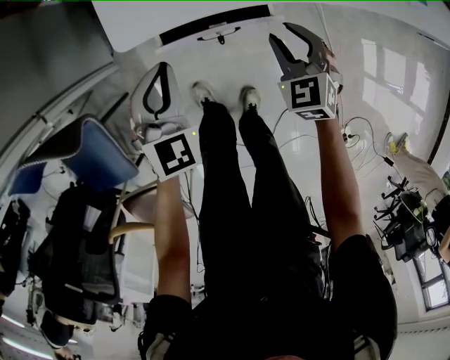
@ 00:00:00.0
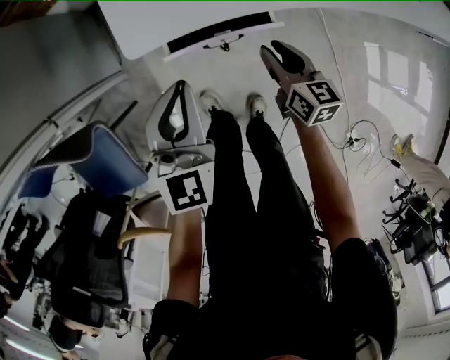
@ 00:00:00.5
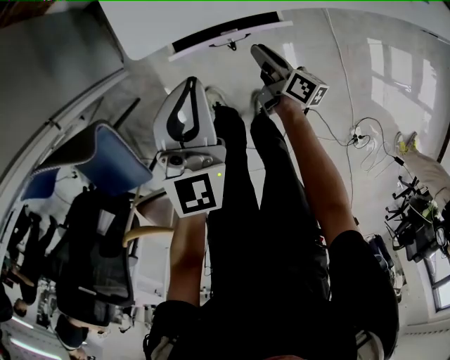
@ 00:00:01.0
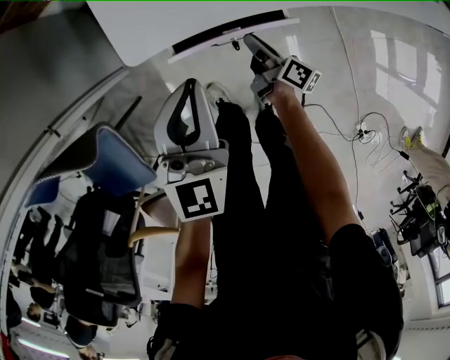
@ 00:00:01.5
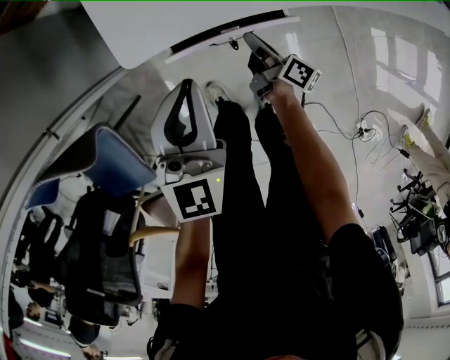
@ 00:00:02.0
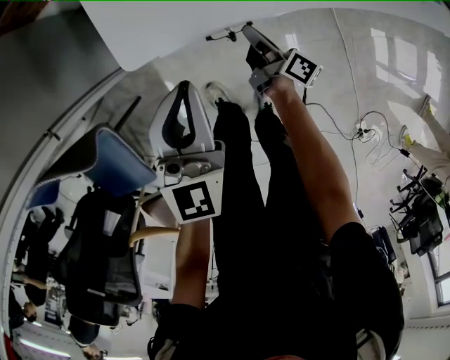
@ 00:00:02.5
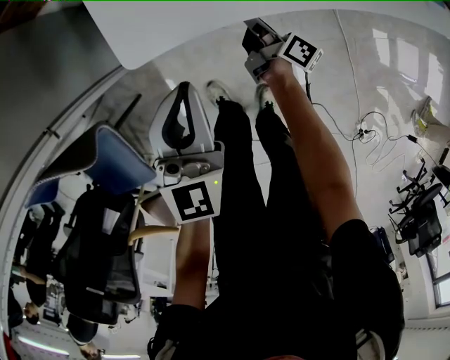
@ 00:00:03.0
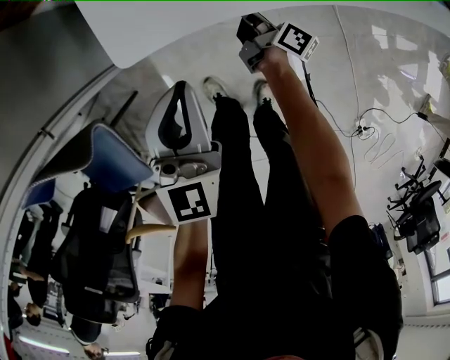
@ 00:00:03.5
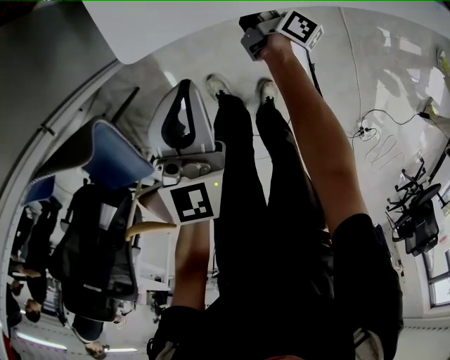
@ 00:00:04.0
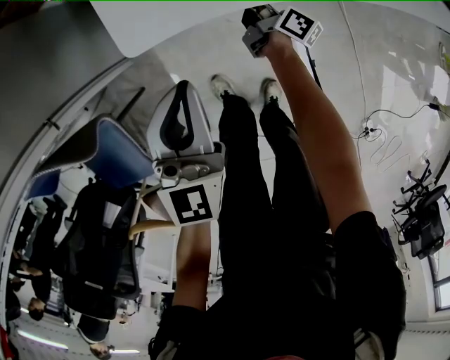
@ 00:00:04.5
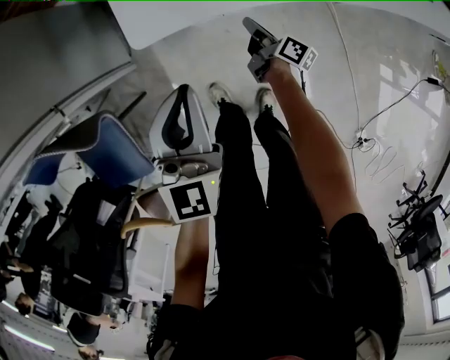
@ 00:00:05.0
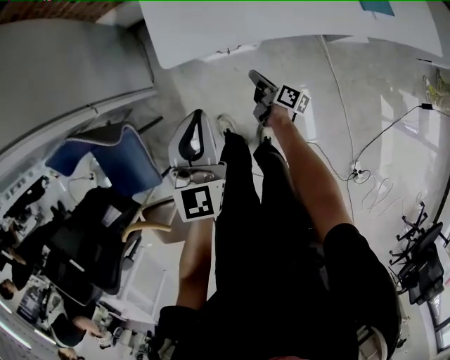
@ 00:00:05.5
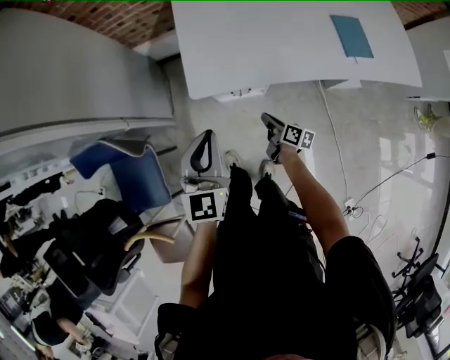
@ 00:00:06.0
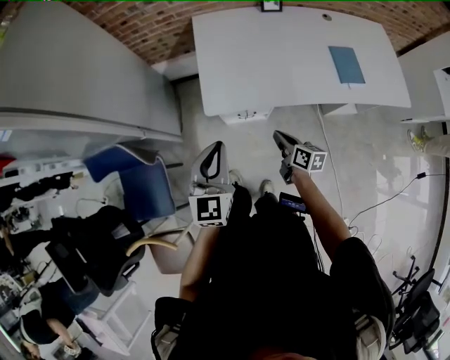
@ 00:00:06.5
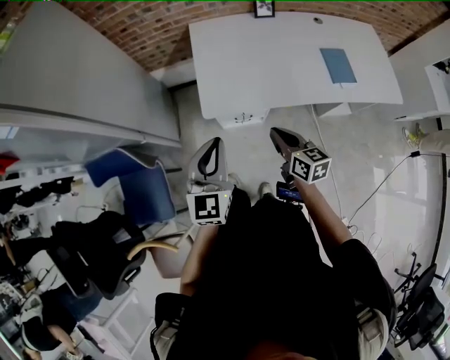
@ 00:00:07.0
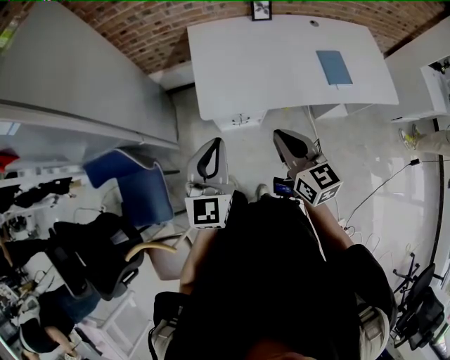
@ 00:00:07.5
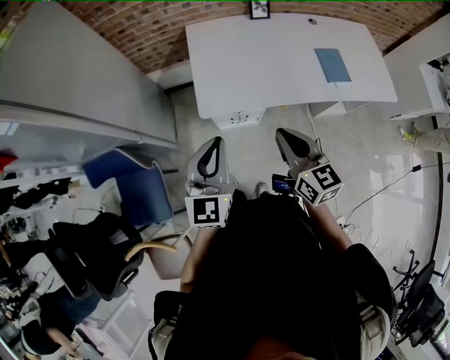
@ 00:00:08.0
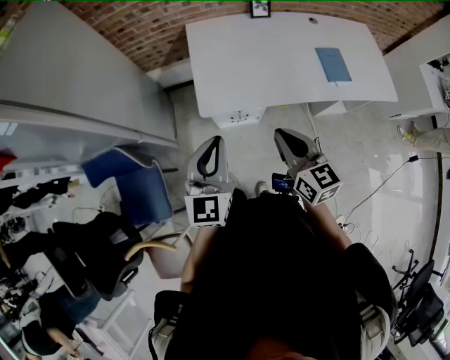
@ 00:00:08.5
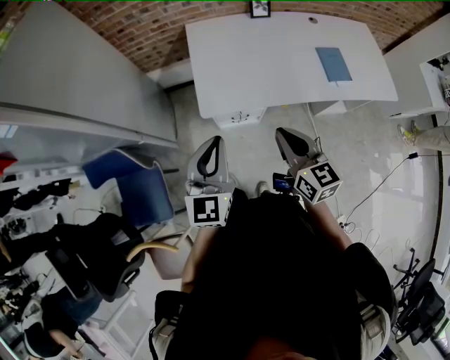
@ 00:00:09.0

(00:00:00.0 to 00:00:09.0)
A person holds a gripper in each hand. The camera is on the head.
00:00:00.0 - 00:00:02.0: The left gripper moves upward, roughly 5 cm, and swivels roughly 30 degrees. Meanwhile the right gripper shifts some 15 cm downward and to the left, rotates around the line of its fingers by roughly 100 degrees, clockwise from behind, and closes.
00:00:02.0 - 00:00:04.5: The right gripper goes approximately 10 cm forward.
00:00:04.5 - 00:00:07.0: The right gripper is displaced upward and backward by about 40 cm, and rolls counterclockwise, seen from behind, by roughly 50 degrees, while the left gripper is displaced upward by roughly 30 cm.
00:00:07.0 - 00:00:09.0: The right gripper travels upward by some 10 cm.

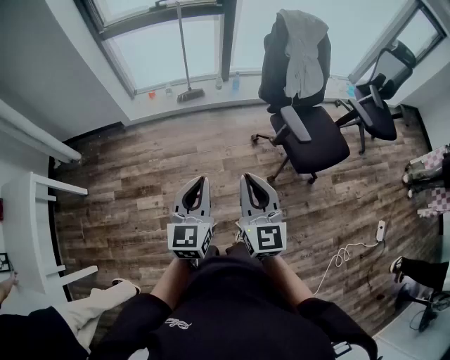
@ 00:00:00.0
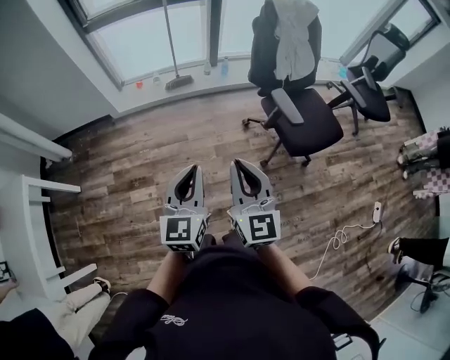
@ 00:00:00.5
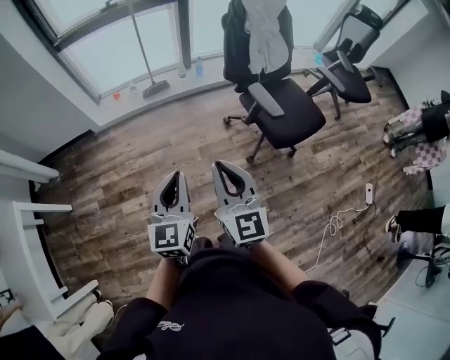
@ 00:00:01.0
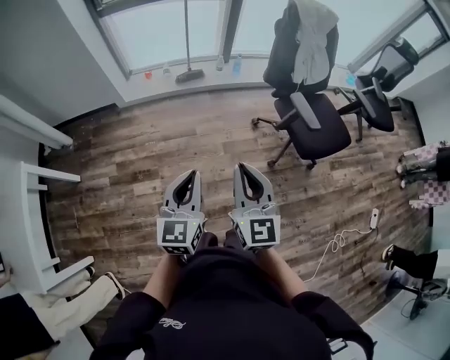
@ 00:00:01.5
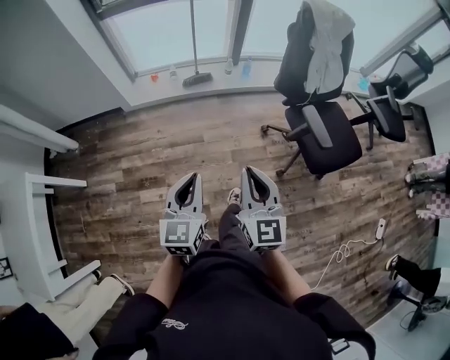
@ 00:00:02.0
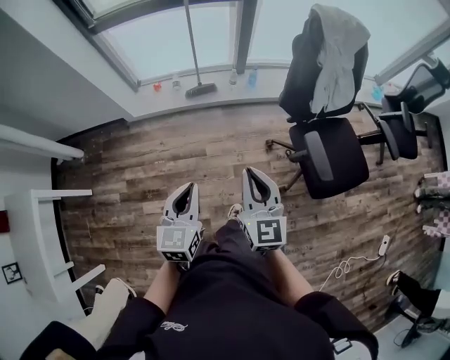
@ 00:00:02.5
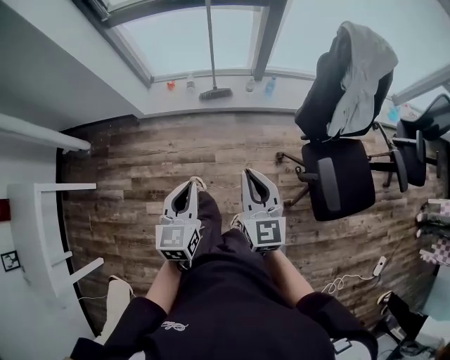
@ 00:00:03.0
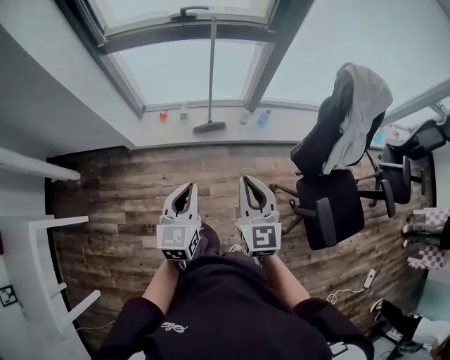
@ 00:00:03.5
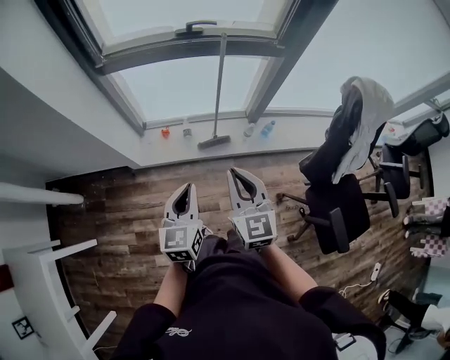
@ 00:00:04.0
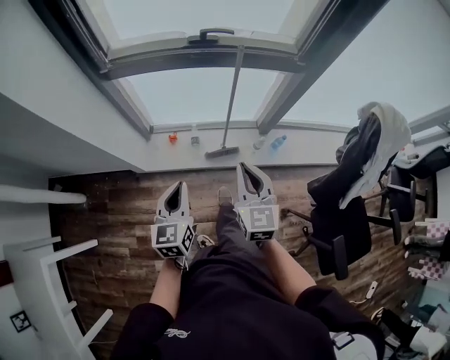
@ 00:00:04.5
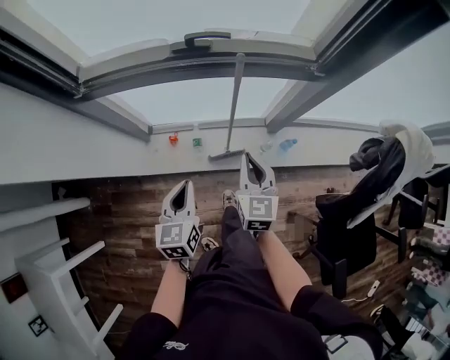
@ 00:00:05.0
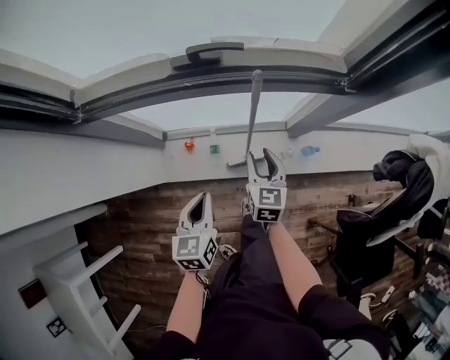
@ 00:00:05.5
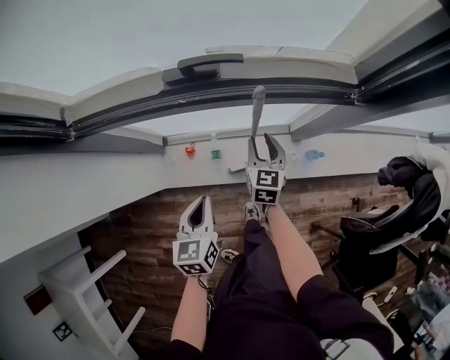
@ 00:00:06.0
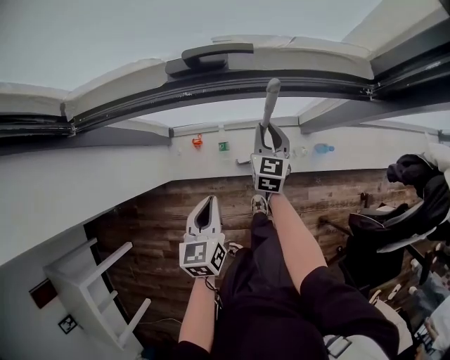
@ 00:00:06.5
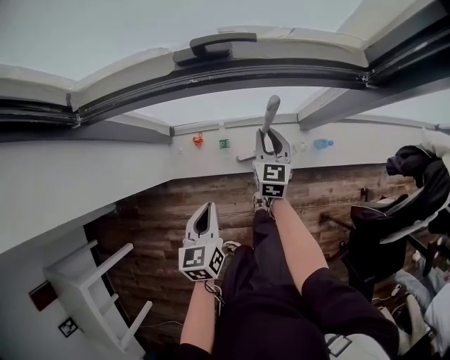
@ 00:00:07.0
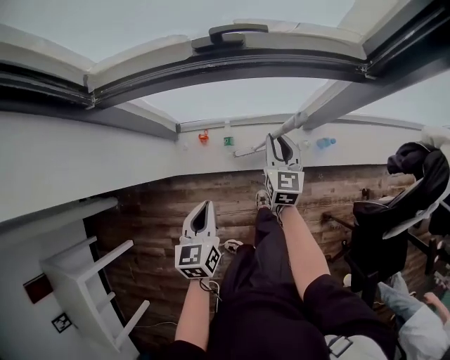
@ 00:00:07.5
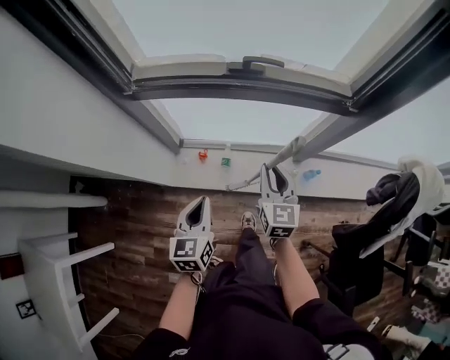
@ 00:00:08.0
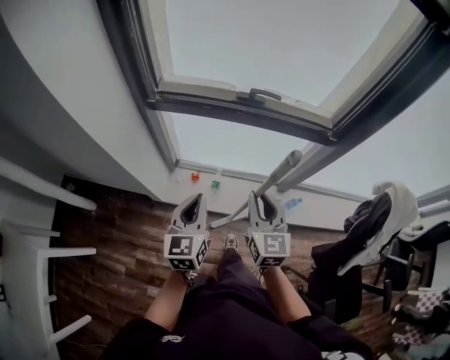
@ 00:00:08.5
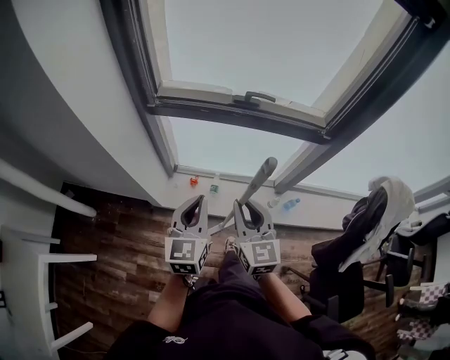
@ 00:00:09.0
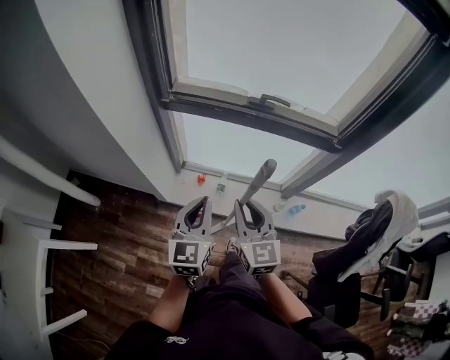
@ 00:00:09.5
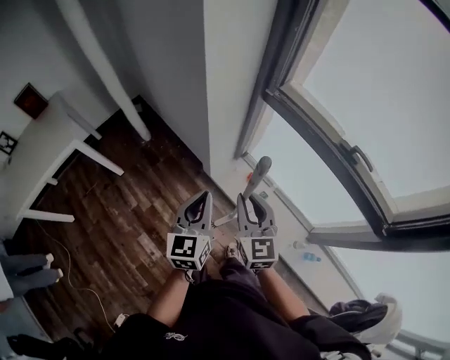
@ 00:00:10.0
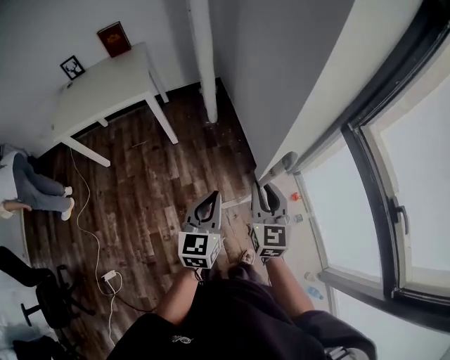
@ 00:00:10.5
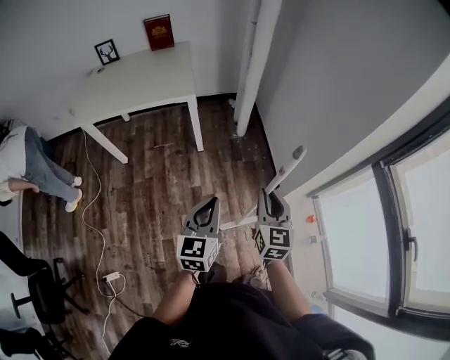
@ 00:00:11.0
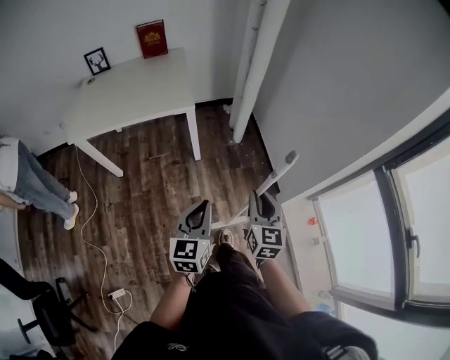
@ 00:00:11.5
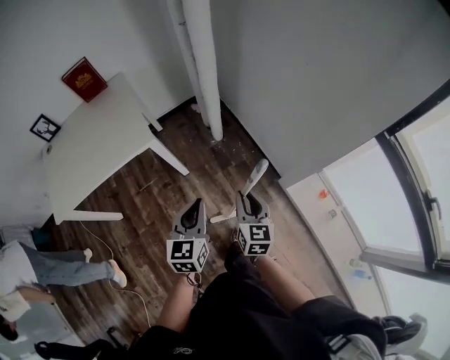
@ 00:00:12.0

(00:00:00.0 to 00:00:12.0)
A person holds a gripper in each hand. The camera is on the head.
00:00:00.0 - 00:00:02.0: The right gripper moves forward, to the left and downward, approximately 15 cm. Meanwhile the left gripper shifts about 15 cm to the left, forward and downward.
00:00:02.0 - 00:00:04.0: Both grippers are carried forward, some 50 cm.
00:00:04.0 - 00:00:06.0: Both grippers move forward and downward, about 50 cm. The right gripper rotates about 20 degrees, and opens its fingers.
00:00:06.0 - 00:00:08.0: The right gripper shifts some 25 cm upward and backward; the left gripper shifts about 15 cm backward, upward and to the left.
00:00:08.0 - 00:00:10.0: The right gripper ends up roughly 30 cm from where it was, and turns by about 50 degrees, while the left gripper moves roughly 20 cm, and changes its angle by approximately 40 degrees.
00:00:10.0 - 00:00:12.0: The pair of grippers is taken some 50 cm.

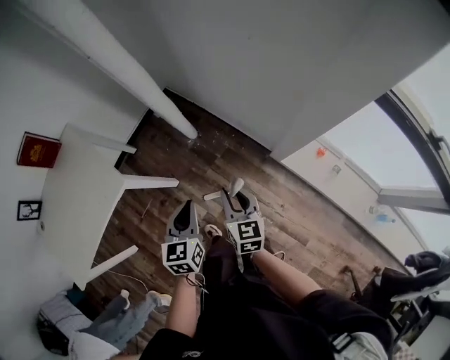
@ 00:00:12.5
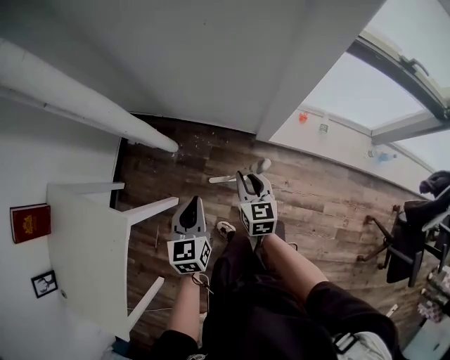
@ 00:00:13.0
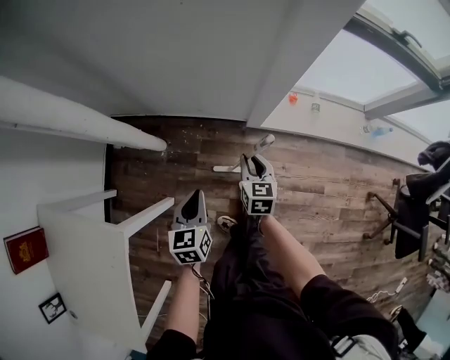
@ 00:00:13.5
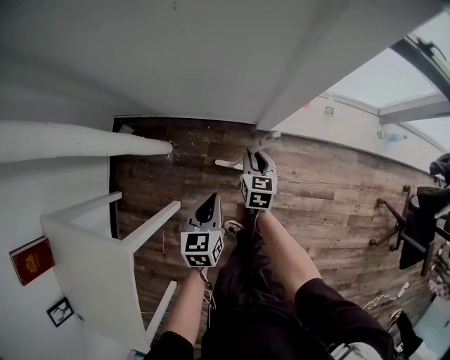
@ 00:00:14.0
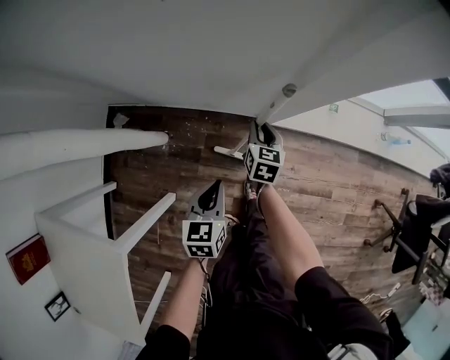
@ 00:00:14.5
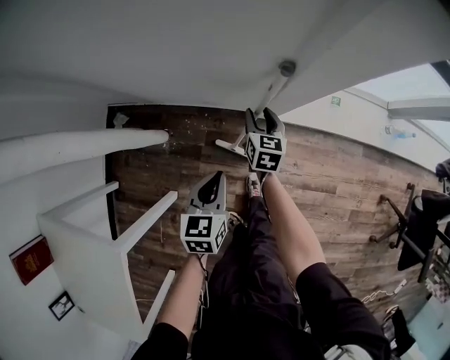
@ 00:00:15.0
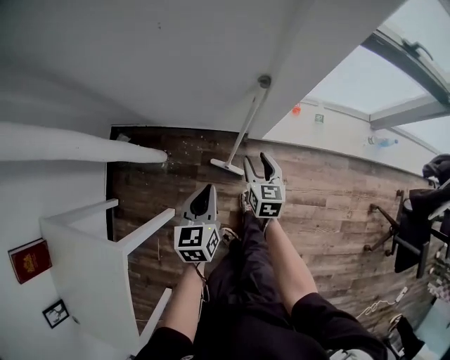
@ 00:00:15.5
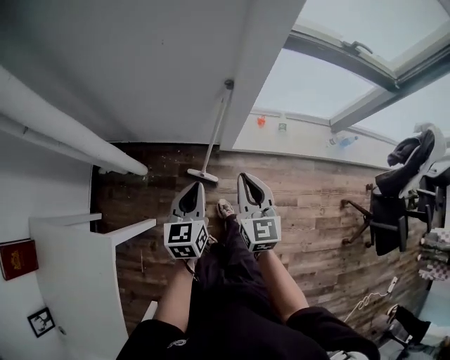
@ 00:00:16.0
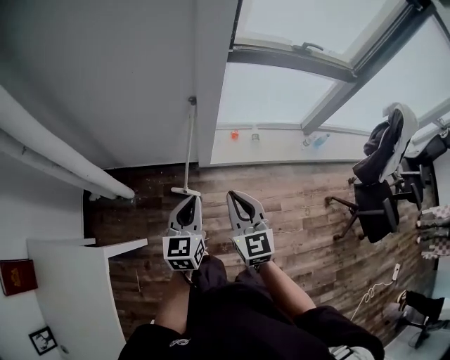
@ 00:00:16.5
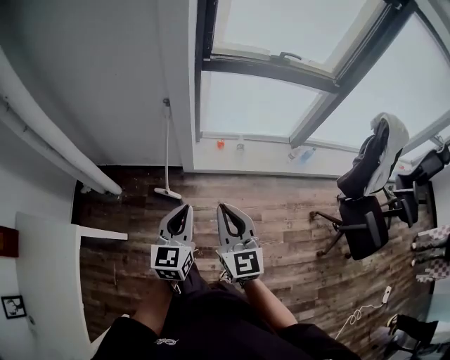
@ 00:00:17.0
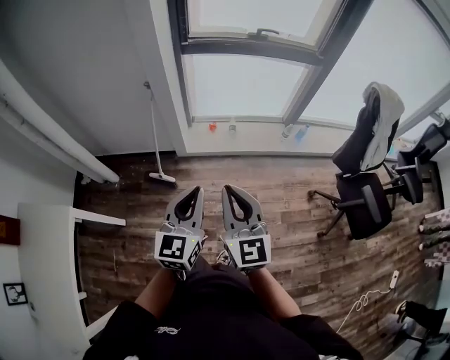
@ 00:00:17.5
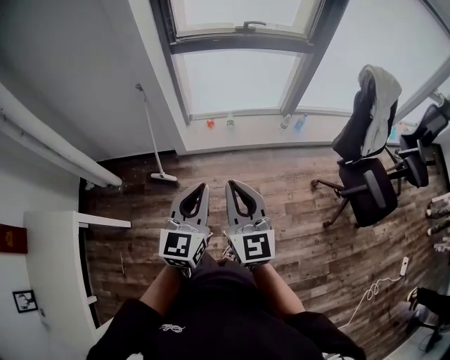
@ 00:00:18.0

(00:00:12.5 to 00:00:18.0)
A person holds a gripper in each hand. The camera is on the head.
00:00:12.5 - 00:00:14.5: The right gripper shifts by some 35 cm, and swivels about 50 degrees. Meanwhile the left gripper shifts roughly 20 cm downward, and swivels roughly 40 degrees.
00:00:14.5 - 00:00:16.0: The right gripper travels upward and backward by roughly 40 cm, swivels about 30 degrees, and opens, then closes again. The left gripper shifts roughly 20 cm upward and backward.
00:00:16.0 - 00:00:18.0: The pair of grippers is taken to the right and backward, some 40 cm. The grippers both shift upward by approximately 15 cm. The left gripper swivels roughly 30 degrees.
